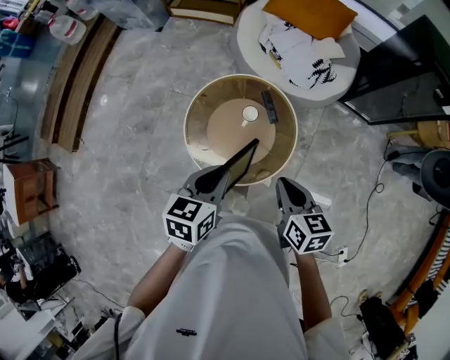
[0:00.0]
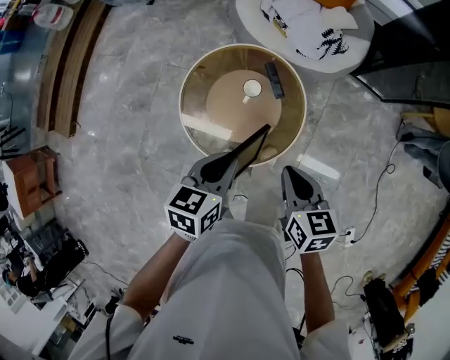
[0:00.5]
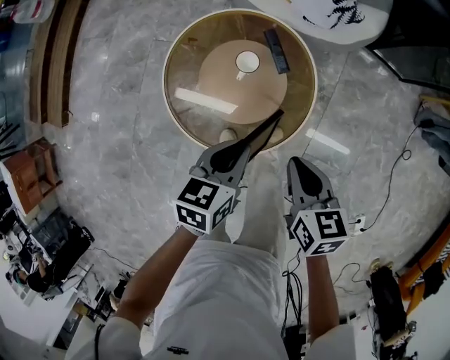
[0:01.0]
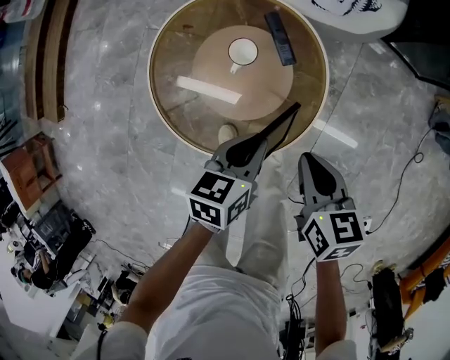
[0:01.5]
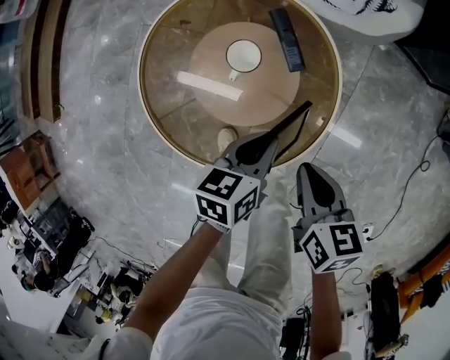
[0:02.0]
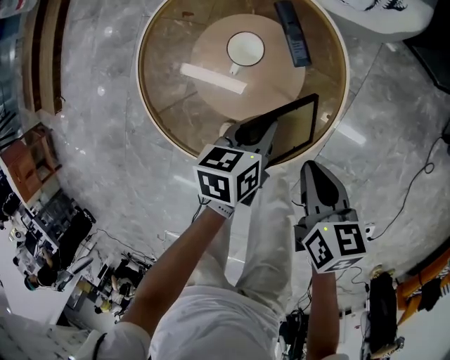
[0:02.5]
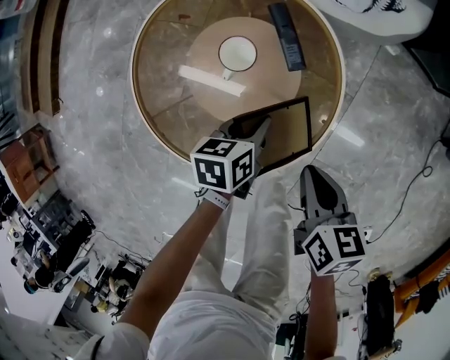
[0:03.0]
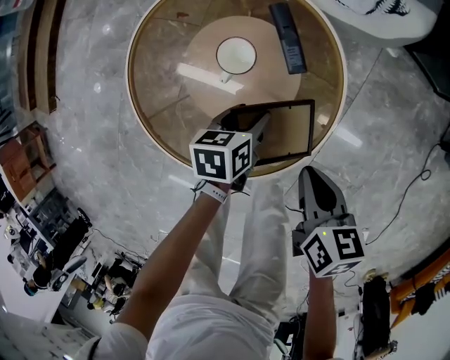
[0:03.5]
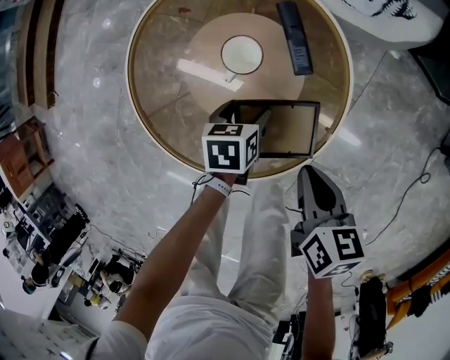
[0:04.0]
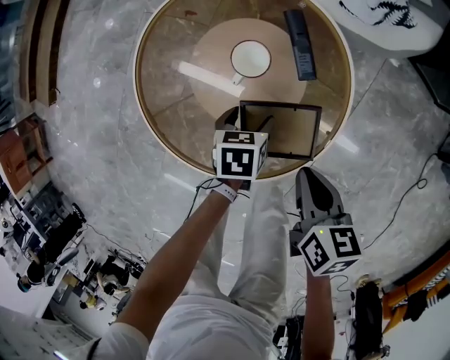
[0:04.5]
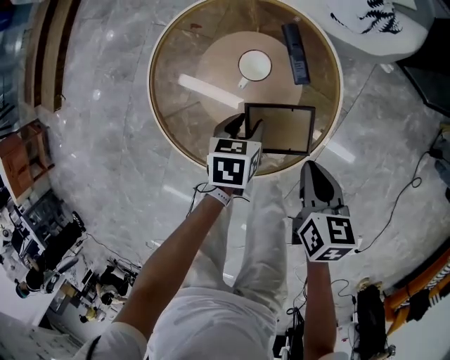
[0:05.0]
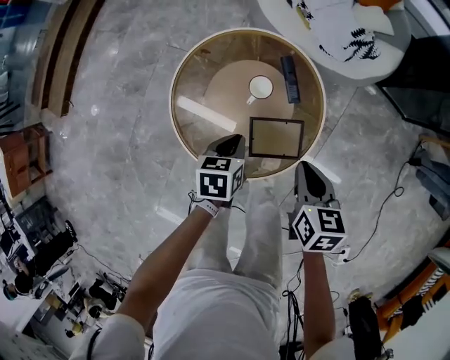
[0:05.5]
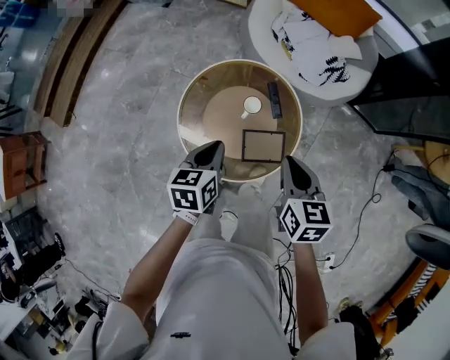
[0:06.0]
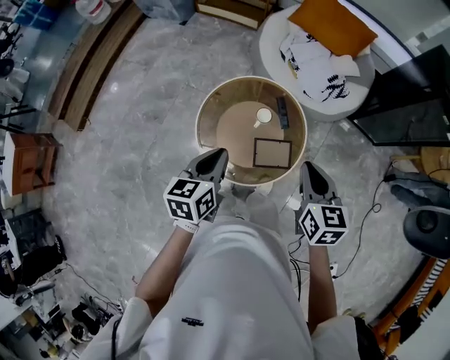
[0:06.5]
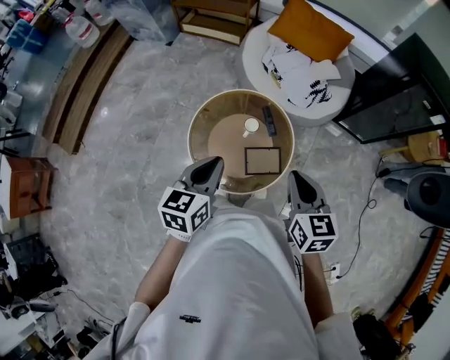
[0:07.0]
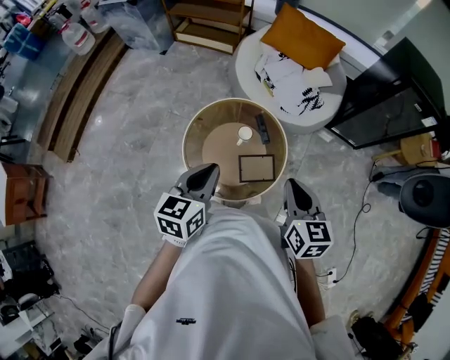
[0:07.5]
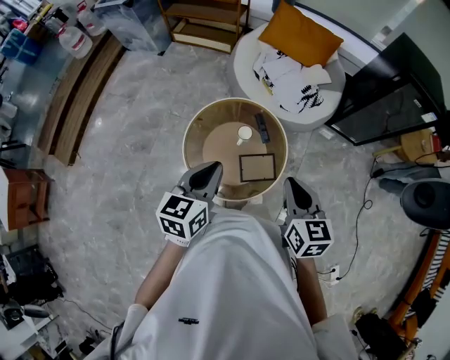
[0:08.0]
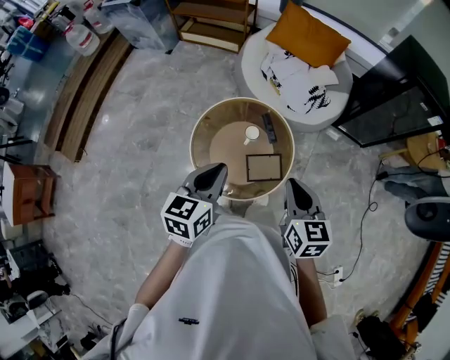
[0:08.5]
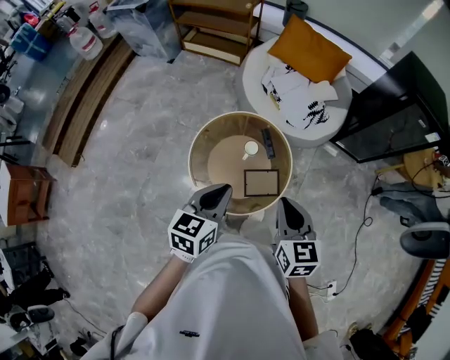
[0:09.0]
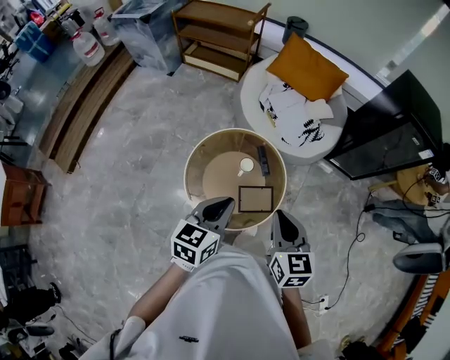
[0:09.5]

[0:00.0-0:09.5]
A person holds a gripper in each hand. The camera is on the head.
0:00.0 to 0:02.0: The grippers both shift downward by roughly 35 cm.
0:02.0 to 0:04.0: The left gripper travels downward by roughly 15 cm, turns by approximately 20 degrees, and opens its fingers. The right gripper shifts some 5 cm downward.
0:04.0 to 0:05.5: The two grippers go some 15 cm upward. The left gripper closes up.
0:05.5 to 0:07.5: Both grippers travel together upward, about 35 cm. The right gripper changes its angle by roughly 20 degrees. The left gripper tilts its fingers about 30 degrees upward.
0:07.5 to 0:09.5: The grippers stay close to where they were, moving slightly.

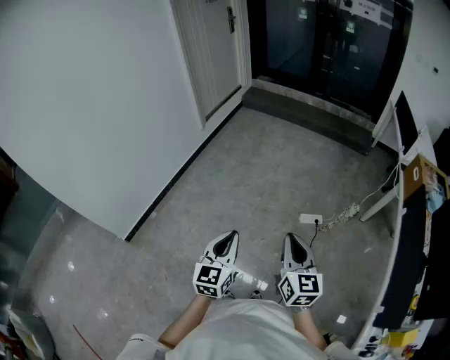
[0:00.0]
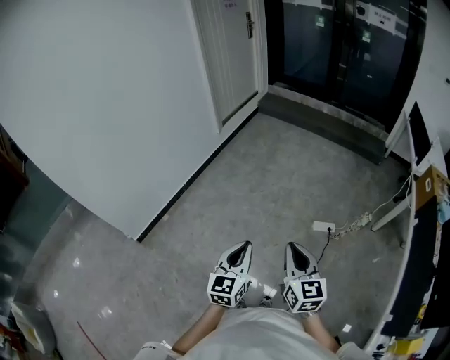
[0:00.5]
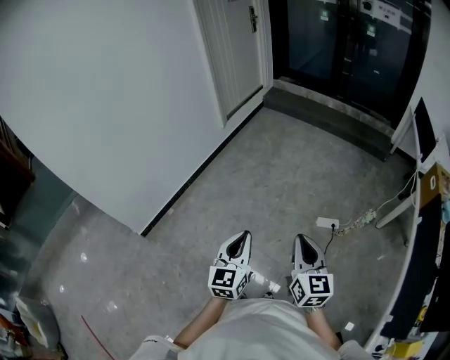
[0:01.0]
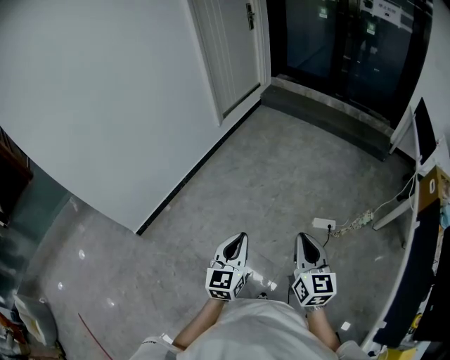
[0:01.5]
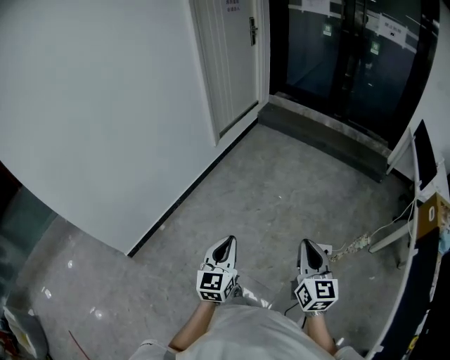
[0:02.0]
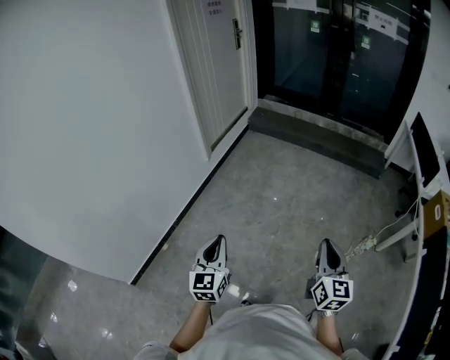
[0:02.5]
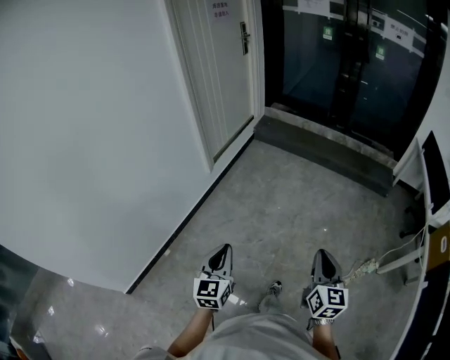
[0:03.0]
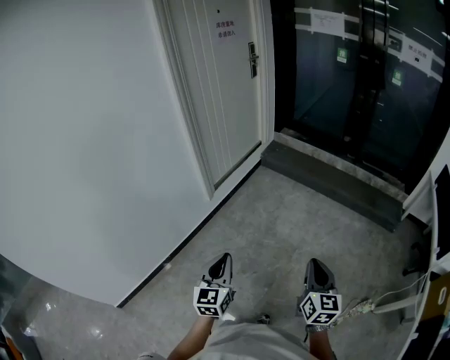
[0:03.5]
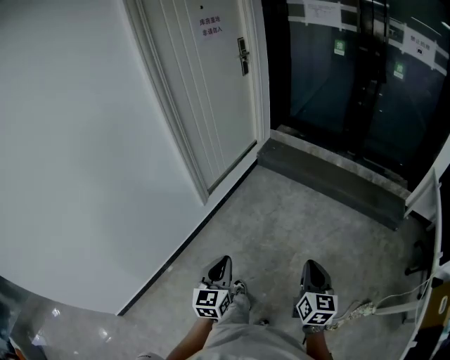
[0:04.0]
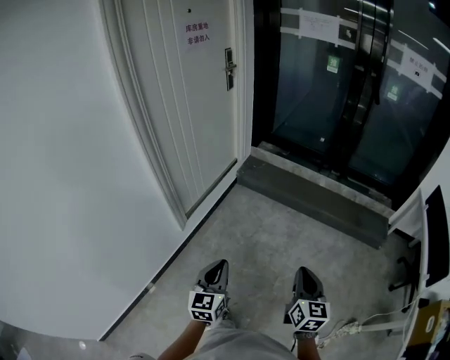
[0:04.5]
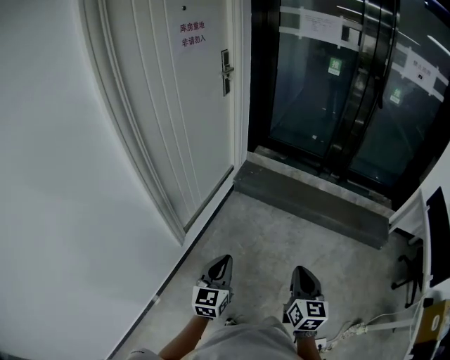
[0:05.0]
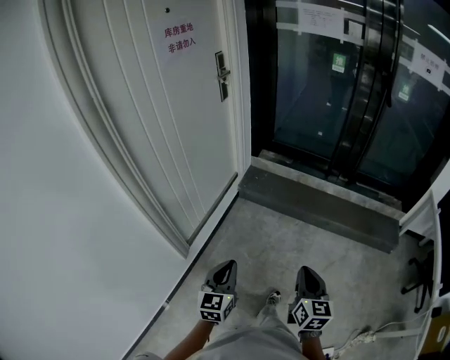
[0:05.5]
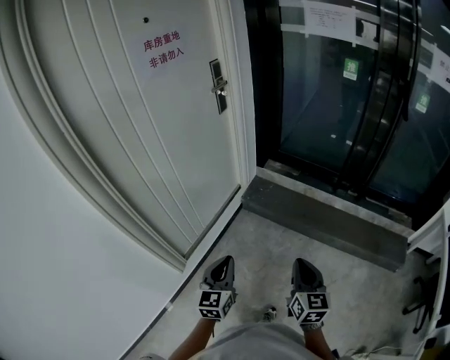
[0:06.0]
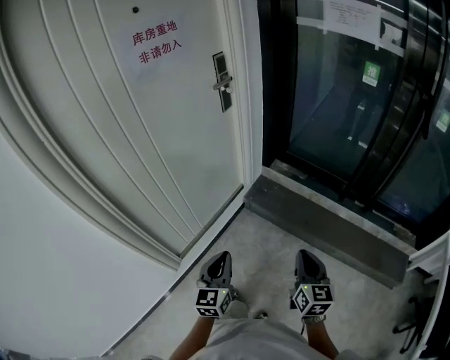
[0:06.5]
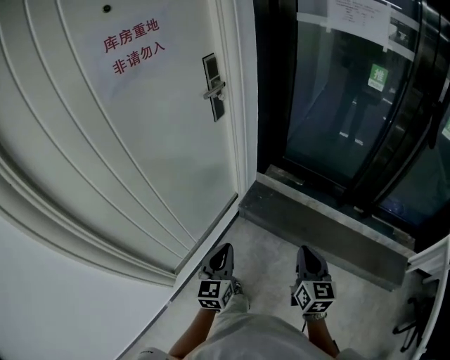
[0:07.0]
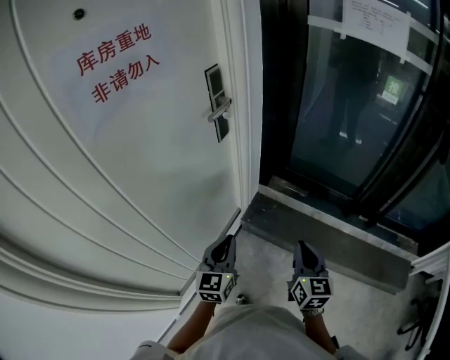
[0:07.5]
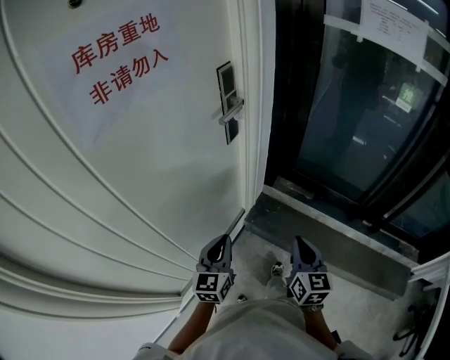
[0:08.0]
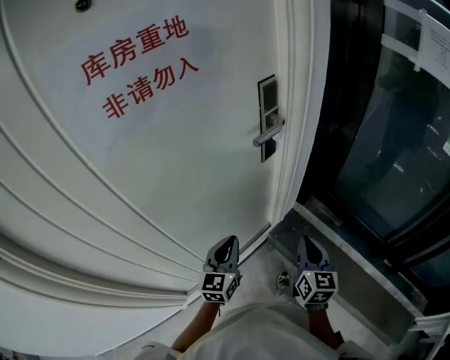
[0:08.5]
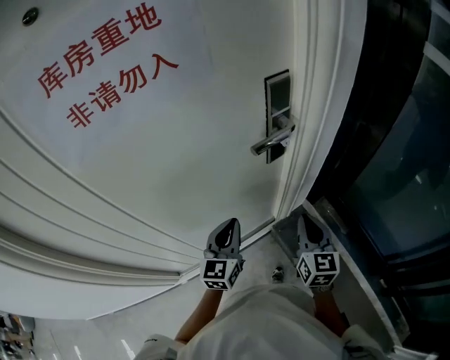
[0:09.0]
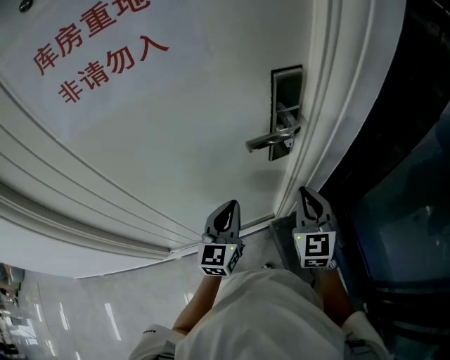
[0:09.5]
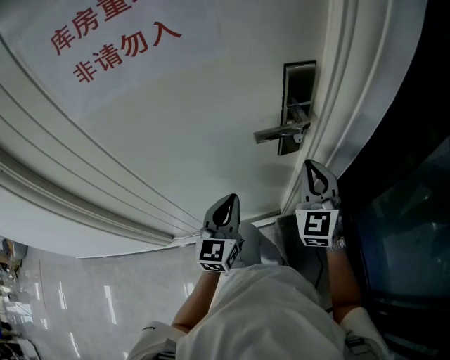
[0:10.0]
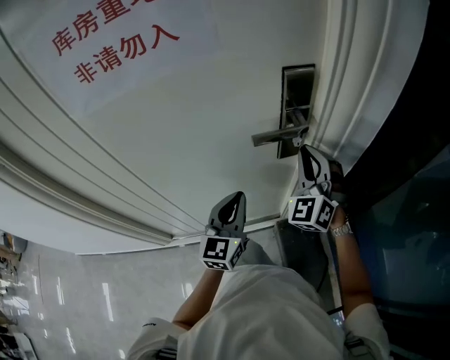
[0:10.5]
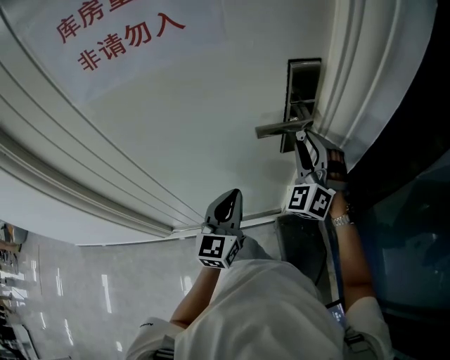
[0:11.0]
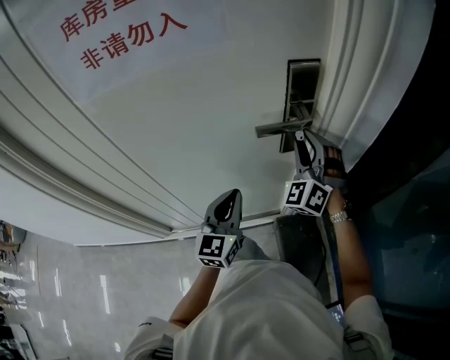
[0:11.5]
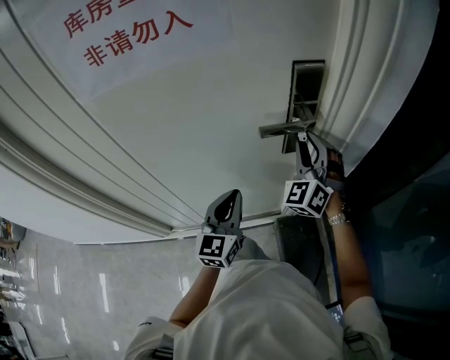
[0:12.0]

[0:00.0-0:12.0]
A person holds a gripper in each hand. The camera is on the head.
0:00.0 to 0:02.0: The left gripper shifts approximately 20 cm forward and to the left. Meanwhile the right gripper shifts roughly 15 cm forward.
0:02.0 to 0:04.0: The pair of grippers is taken forward, roughly 50 cm.
0:04.0 to 0:06.0: The pair of grippers is taken forward, roughly 60 cm.
0:06.0 to 0:08.0: Both grippers are carried forward, roughly 50 cm.
0:08.0 to 0:10.0: The left gripper shifts by roughly 20 cm, and changes its angle by approximately 40 degrees. Meanwhile the right gripper moves roughly 40 cm, and rotates about 60 degrees.
0:10.0 to 0:12.0: The right gripper is displaced forward by some 5 cm, turns by some 30 degrees, and opens up.

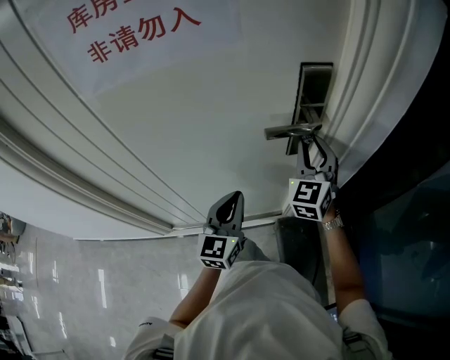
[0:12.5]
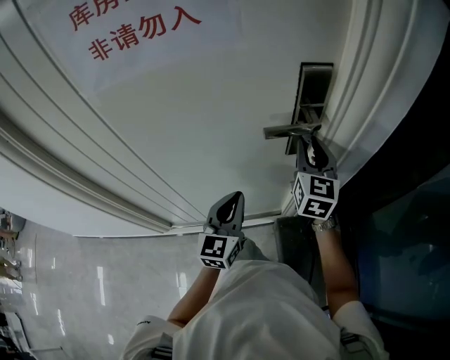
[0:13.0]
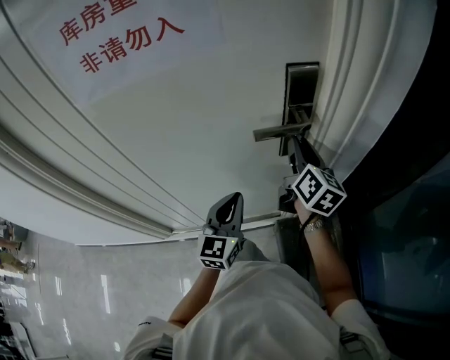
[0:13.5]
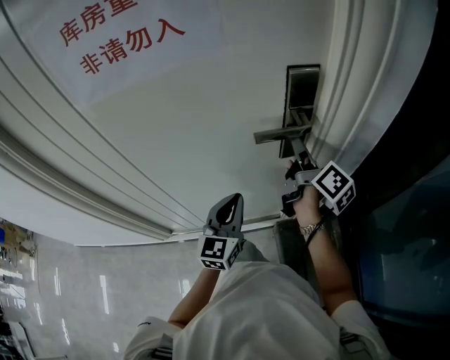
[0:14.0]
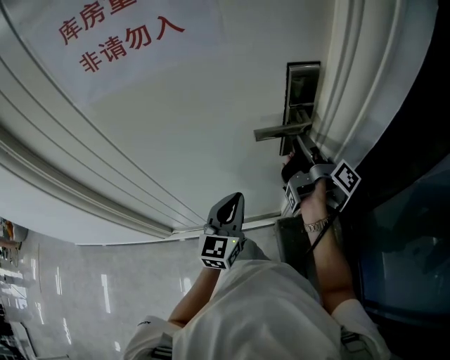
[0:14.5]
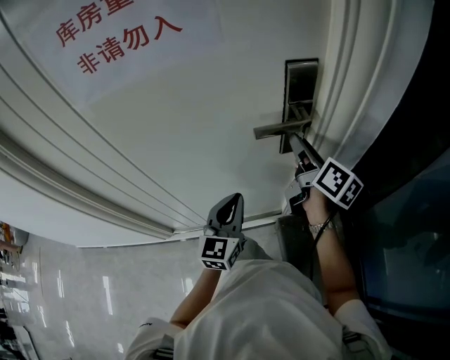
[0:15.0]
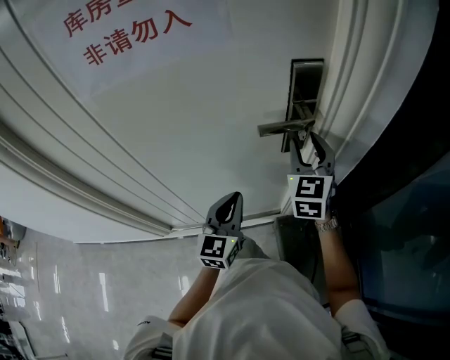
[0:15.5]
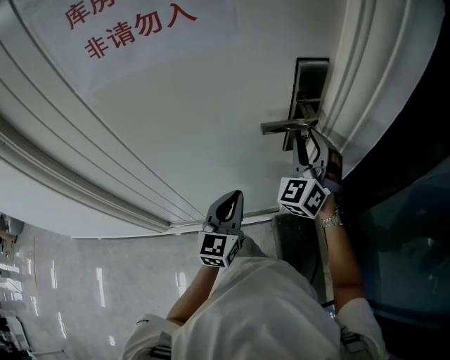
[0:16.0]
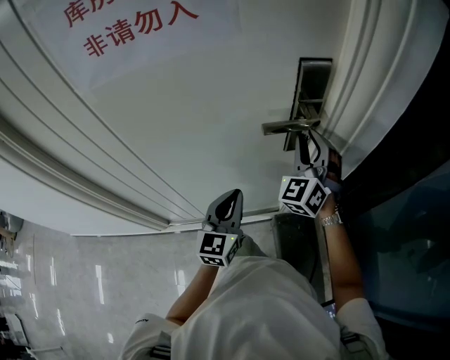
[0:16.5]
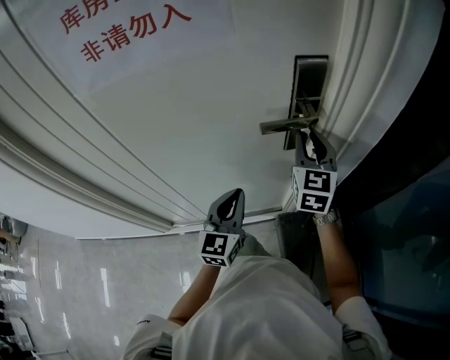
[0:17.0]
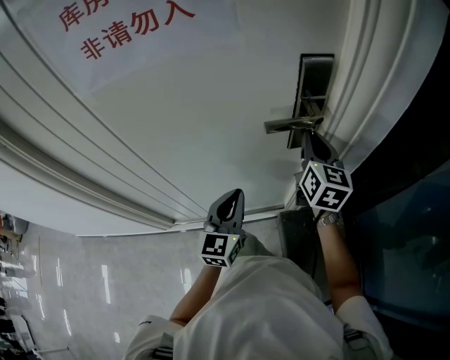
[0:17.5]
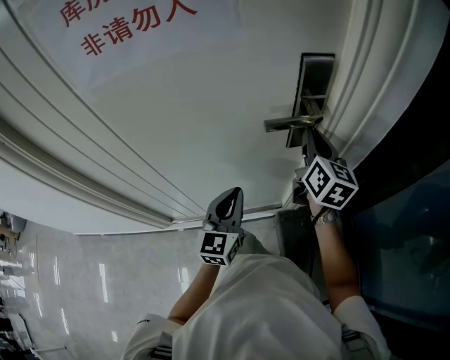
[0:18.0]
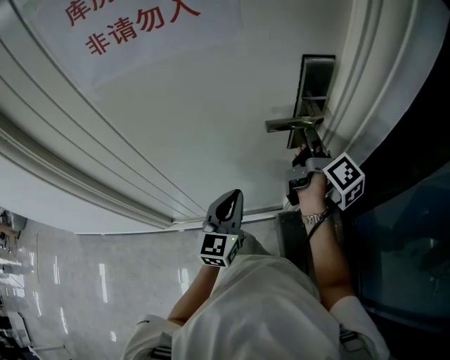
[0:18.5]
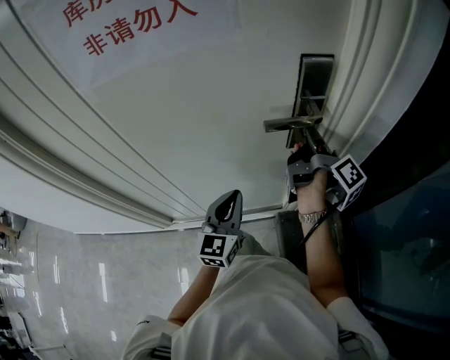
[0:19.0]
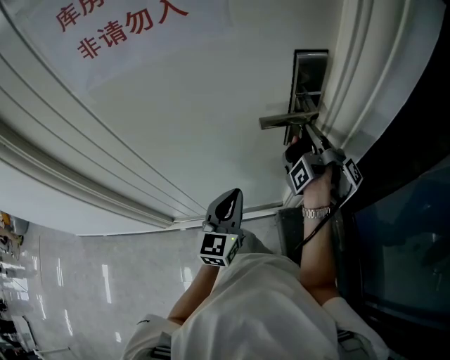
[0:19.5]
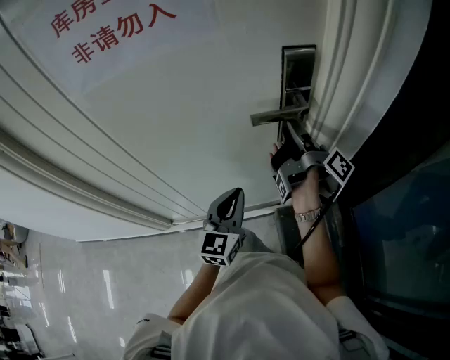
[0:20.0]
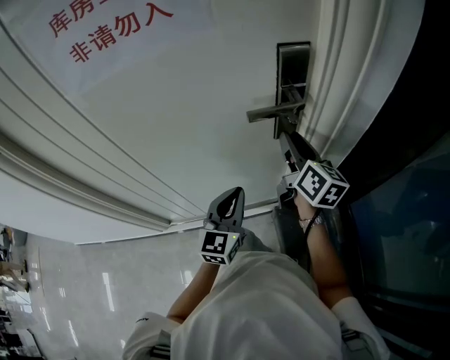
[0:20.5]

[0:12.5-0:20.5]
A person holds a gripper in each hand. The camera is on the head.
0:12.5 to 0:14.5: The right gripper rotates around the line of its fingers by some 120 degrees, clockwise from behind.
0:14.5 to 0:16.5: The right gripper rotates around the line of its fingers by roughly 140 degrees, counterclockwise from behind.
0:16.5 to 0:18.5: The right gripper twists about 120 degrees clockwise, seen from behind, and closes up.
0:18.5 to 0:20.5: The right gripper rotates about 40 degrees, and opens up.
